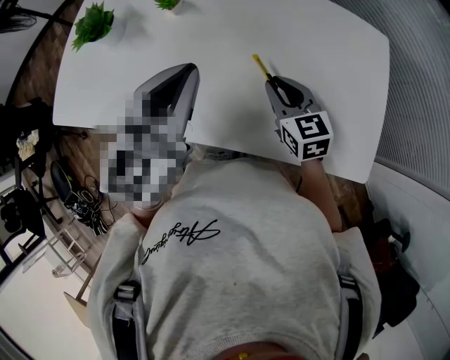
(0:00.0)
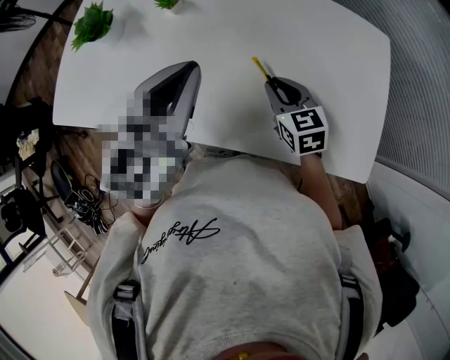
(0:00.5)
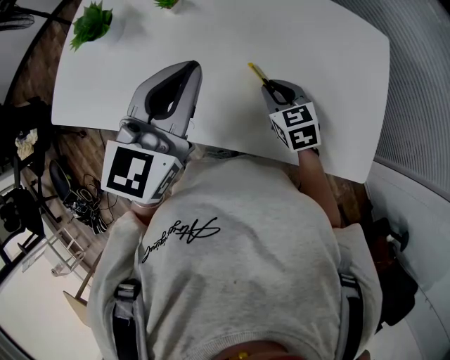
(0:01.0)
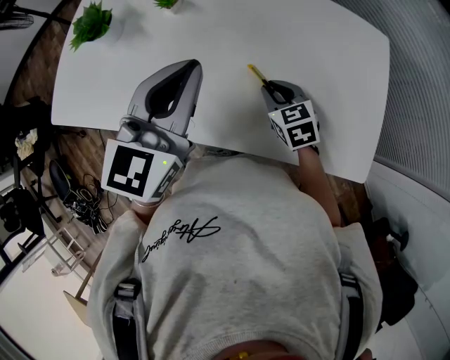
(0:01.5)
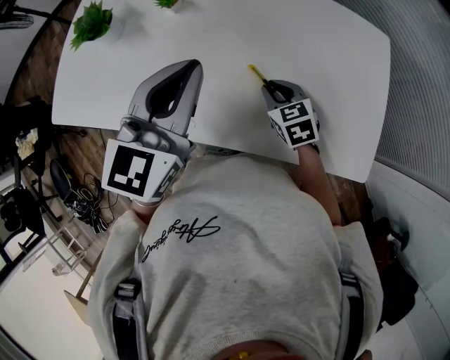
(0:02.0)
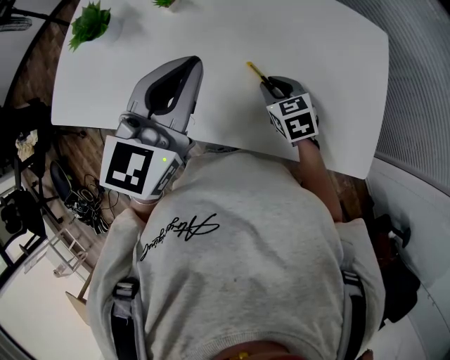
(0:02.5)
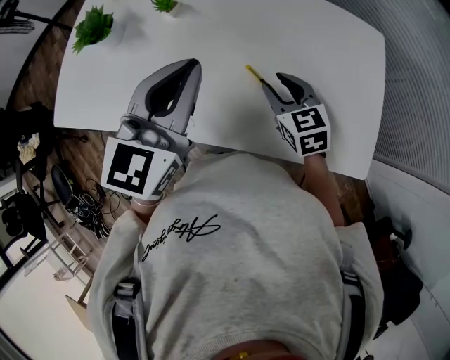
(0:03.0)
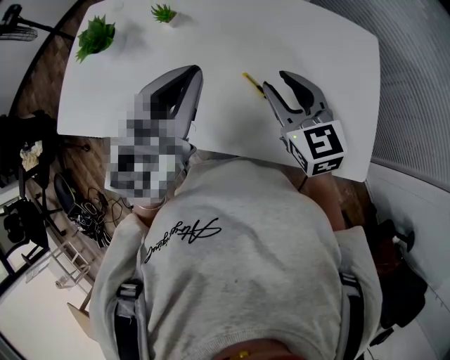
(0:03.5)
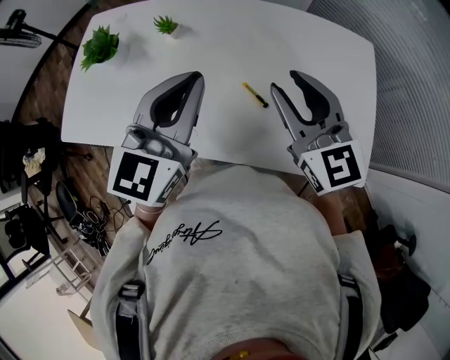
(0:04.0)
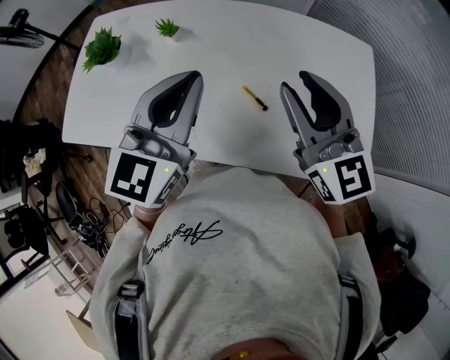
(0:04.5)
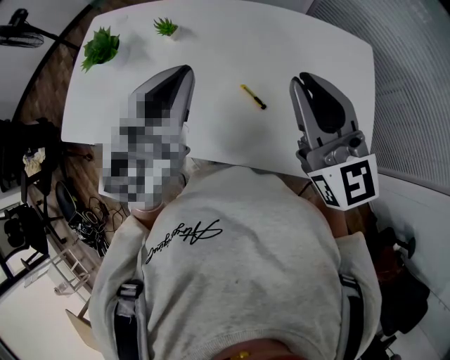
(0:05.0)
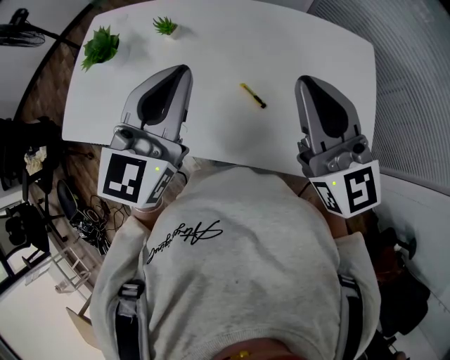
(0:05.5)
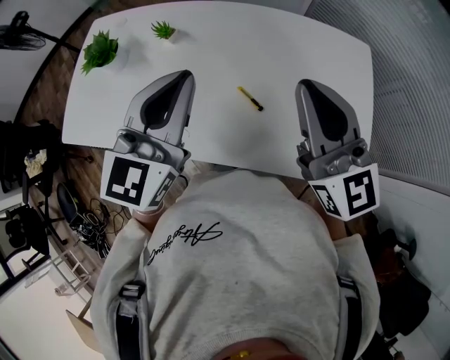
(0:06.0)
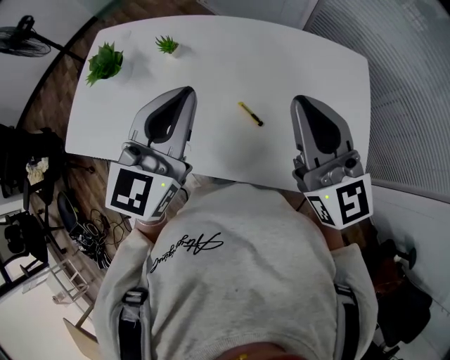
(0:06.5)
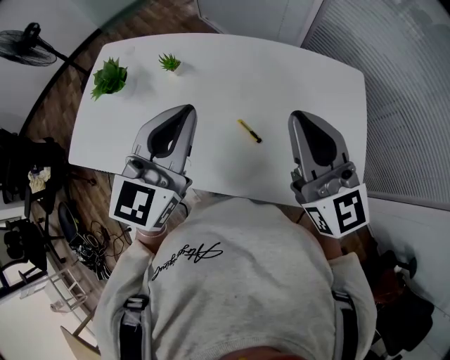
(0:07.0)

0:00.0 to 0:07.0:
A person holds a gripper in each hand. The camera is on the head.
0:00.0 to 0:02.0: The right gripper is displaced downward by approximately 5 cm.
0:02.0 to 0:03.5: The right gripper goes approximately 15 cm upward, changes its angle by roughly 30 degrees, and opens.
0:03.5 to 0:05.0: The right gripper heads upward, covering some 15 cm, rotates some 20 degrees, and closes its fingers.
0:05.0 to 0:07.0: The grippers move only a little.

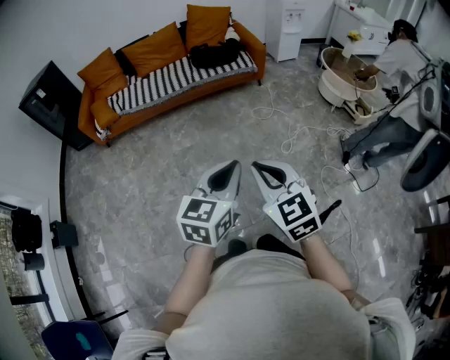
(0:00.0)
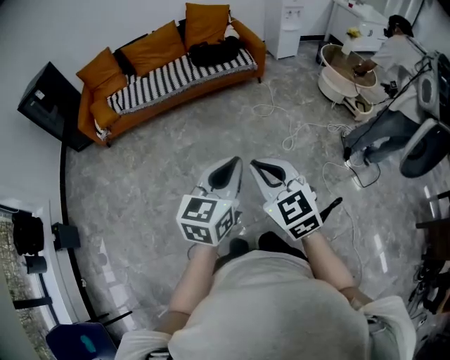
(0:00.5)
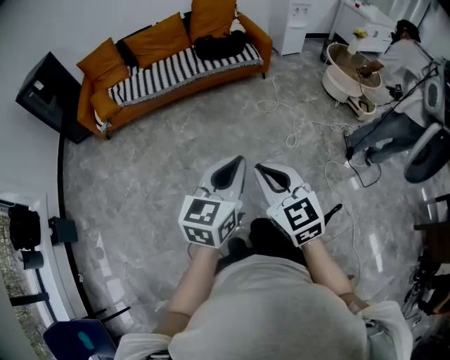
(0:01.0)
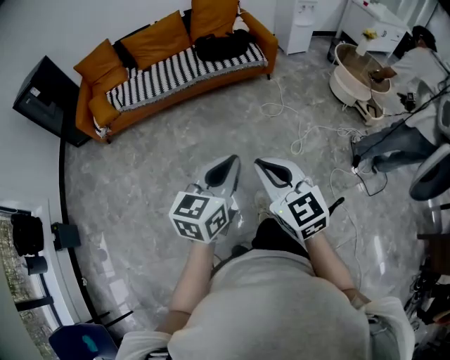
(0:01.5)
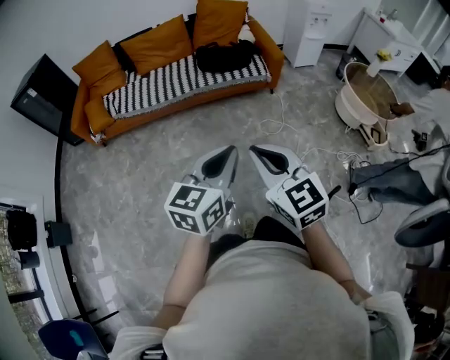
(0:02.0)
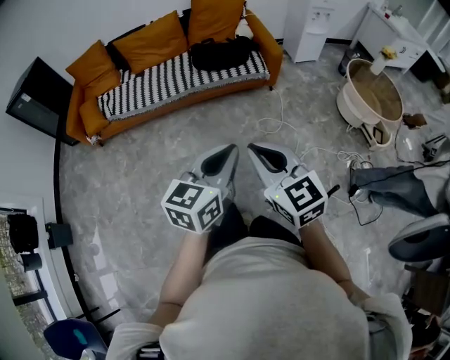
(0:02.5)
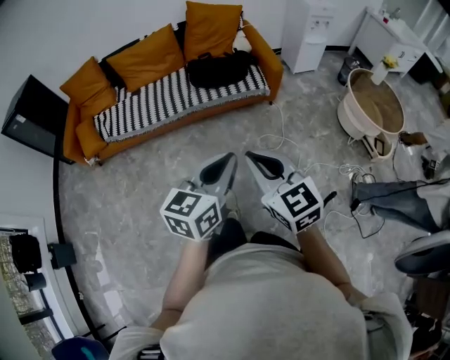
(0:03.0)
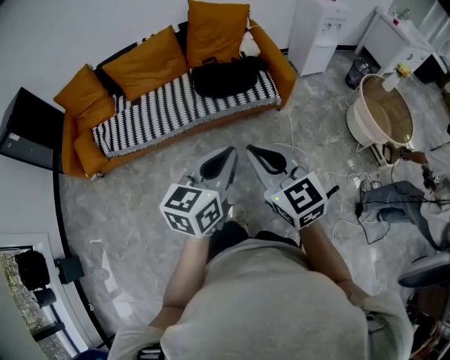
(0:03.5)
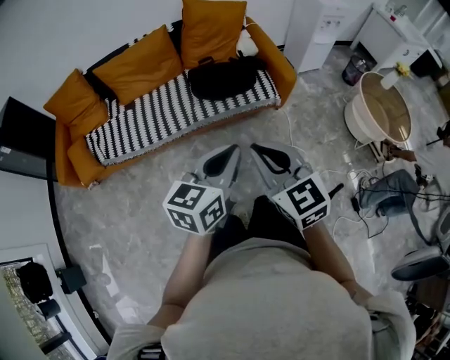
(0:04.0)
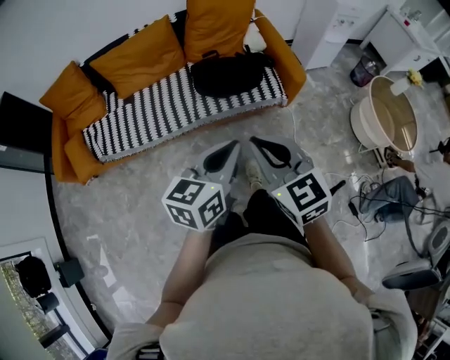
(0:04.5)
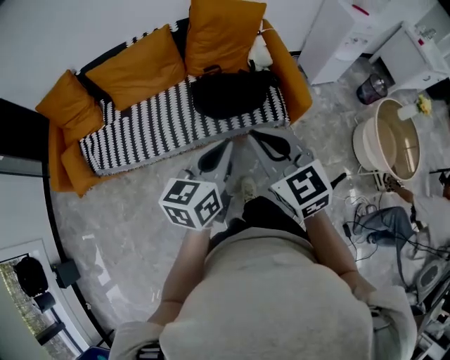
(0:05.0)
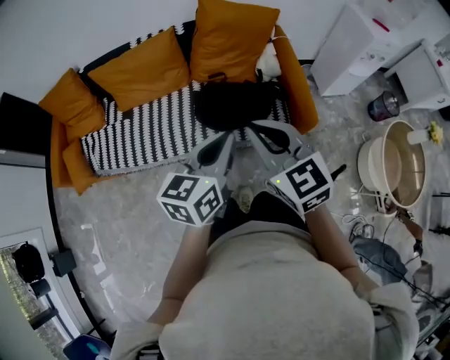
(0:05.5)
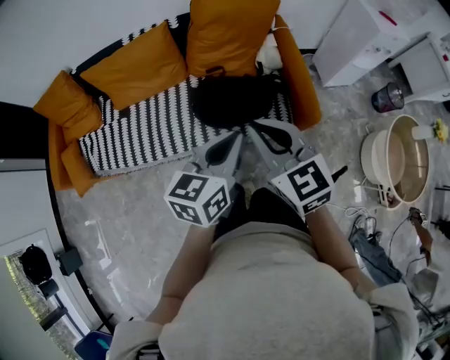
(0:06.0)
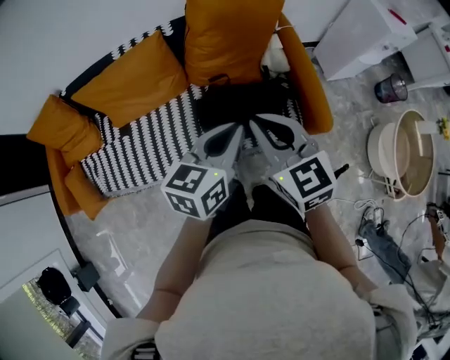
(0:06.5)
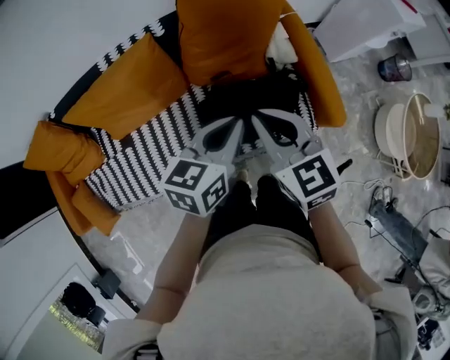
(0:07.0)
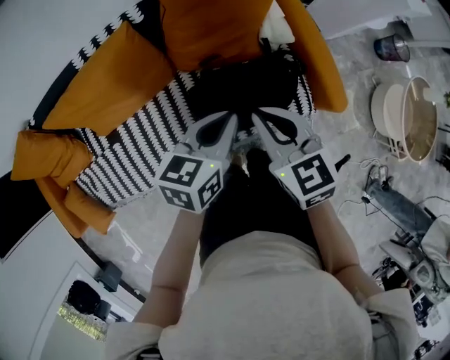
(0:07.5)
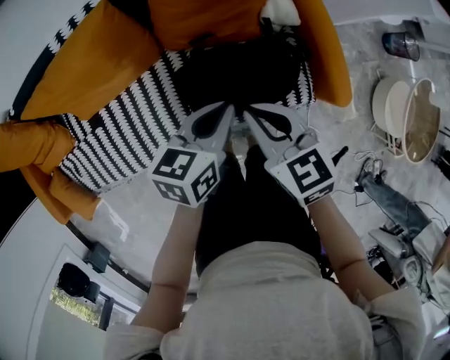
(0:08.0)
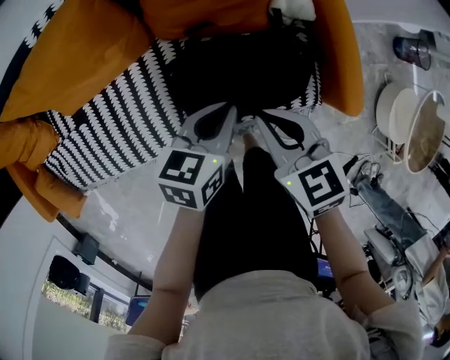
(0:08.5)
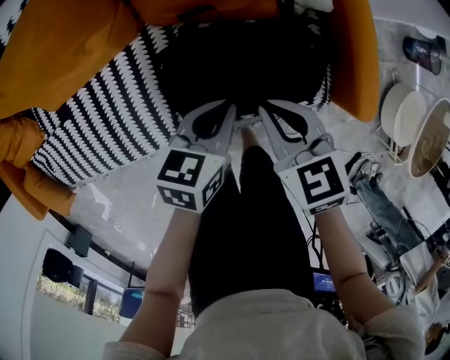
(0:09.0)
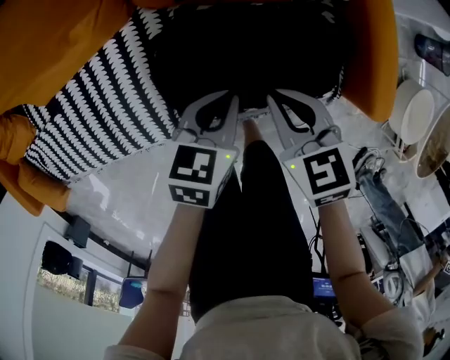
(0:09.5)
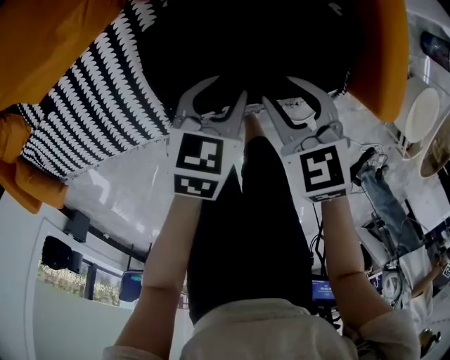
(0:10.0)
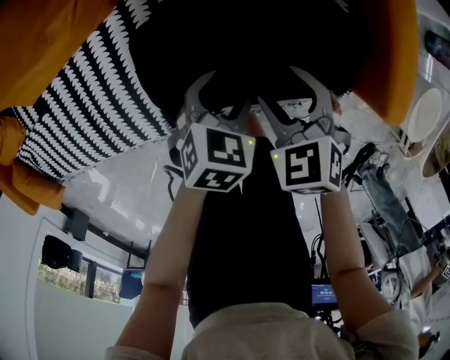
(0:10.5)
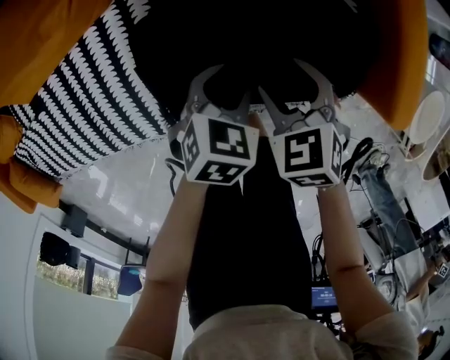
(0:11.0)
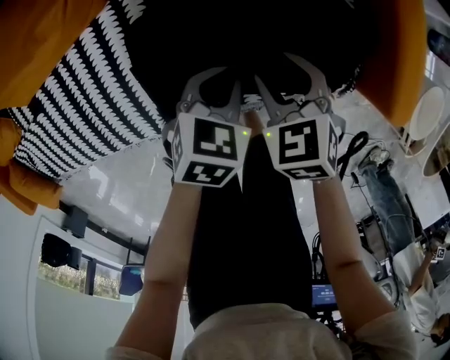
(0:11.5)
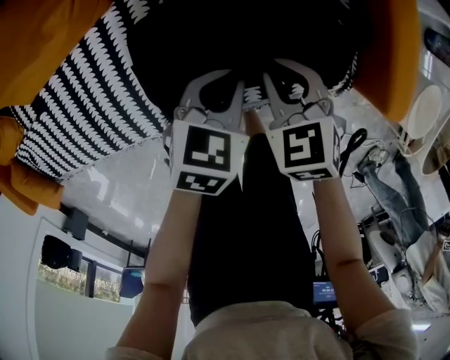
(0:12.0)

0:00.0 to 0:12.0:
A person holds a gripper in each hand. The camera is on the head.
0:00.0 to 0:02.0: The grippers both shift forward by roughly 25 cm.
0:02.0 to 0:04.0: The two grippers go some 35 cm forward.
0:04.0 to 0:06.0: The two grippers go approximately 35 cm forward.
0:06.0 to 0:08.0: The grippers both shift forward, downward and to the left by about 30 cm. The right gripper turns by roughly 20 degrees. The left gripper changes its angle by about 20 degrees.
0:08.0 to 0:10.0: The two grippers go about 25 cm downward. The left gripper opens its fingers. The right gripper opens.
0:10.0 to 0:12.0: The right gripper ends up about 5 cm from where it was, and closes. Meanwhile the left gripper closes up.

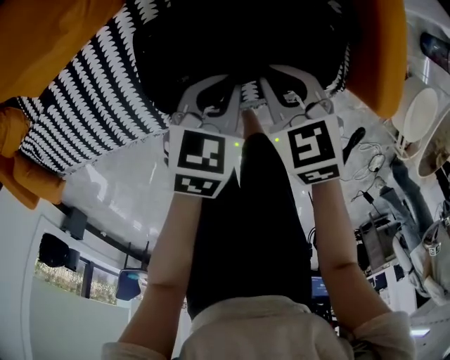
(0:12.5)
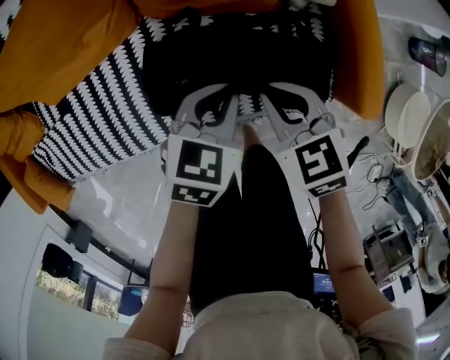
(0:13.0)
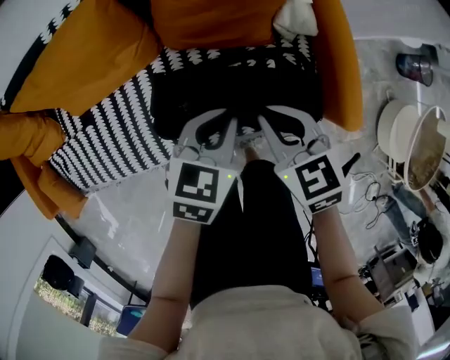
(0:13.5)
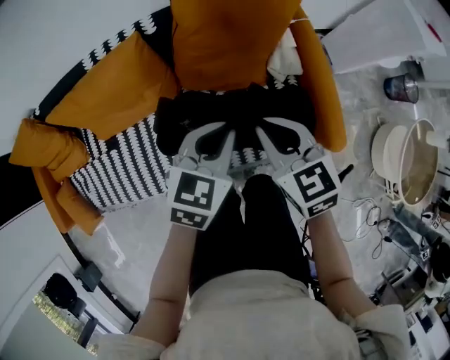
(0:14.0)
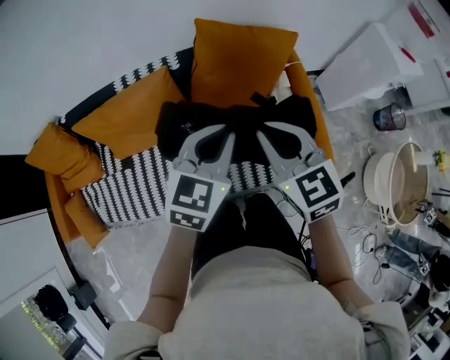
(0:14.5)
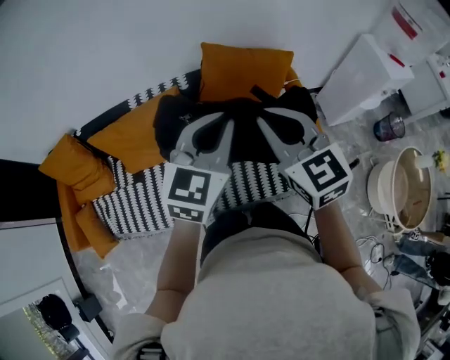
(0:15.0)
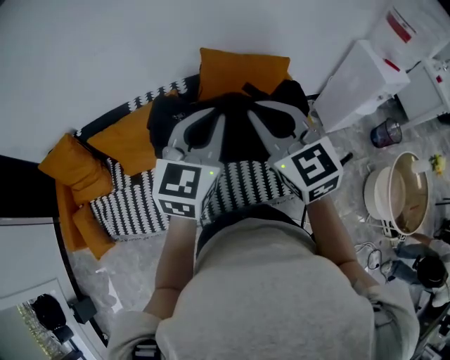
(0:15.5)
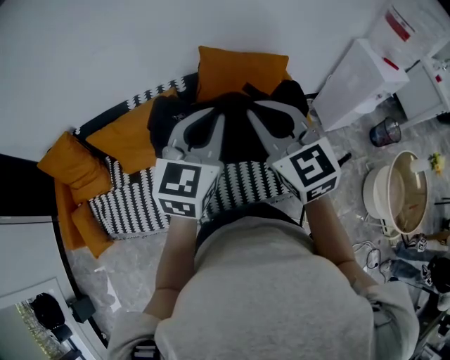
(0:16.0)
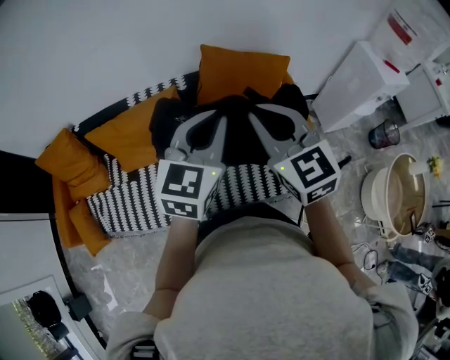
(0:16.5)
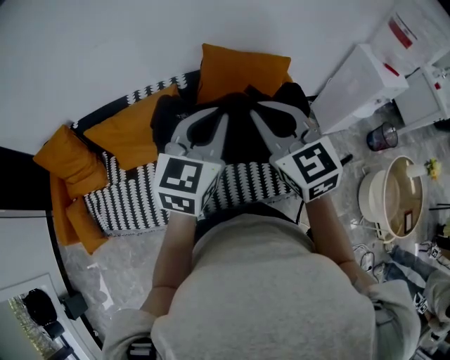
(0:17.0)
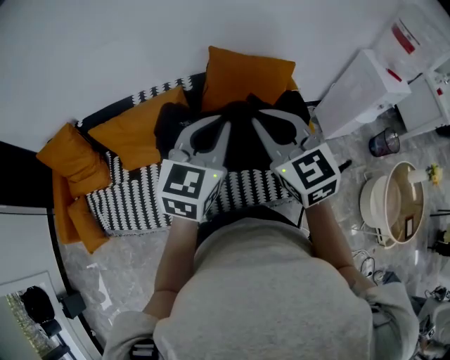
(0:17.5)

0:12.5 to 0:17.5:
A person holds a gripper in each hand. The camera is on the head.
0:12.5 to 0:15.0: The grippers both shift upward by approximately 50 cm. The left gripper tilts its fingers about 40 degrees upward; the right gripper angles its fingers upward, by approximately 40 degrees.
0:15.0 to 0:17.5: There are only small adjustments of the grippers.

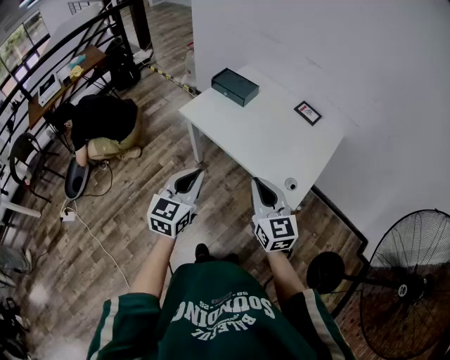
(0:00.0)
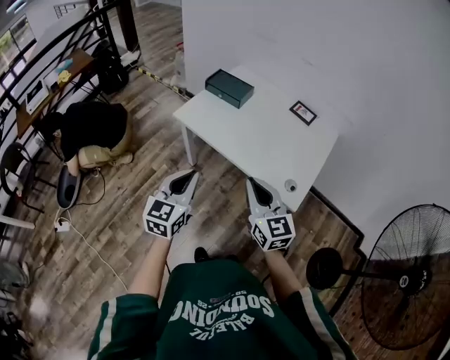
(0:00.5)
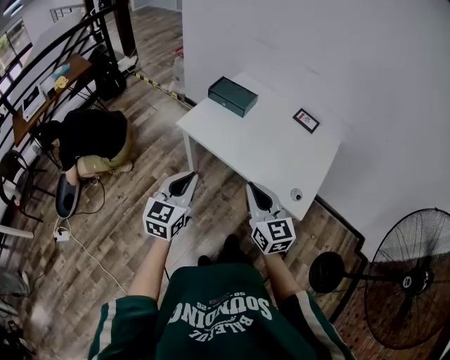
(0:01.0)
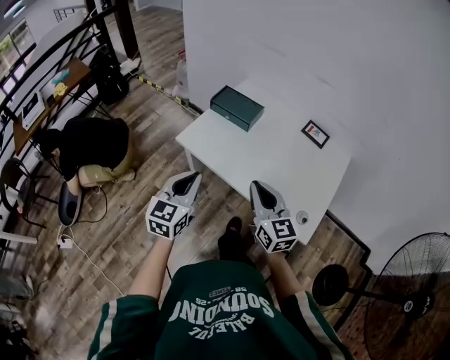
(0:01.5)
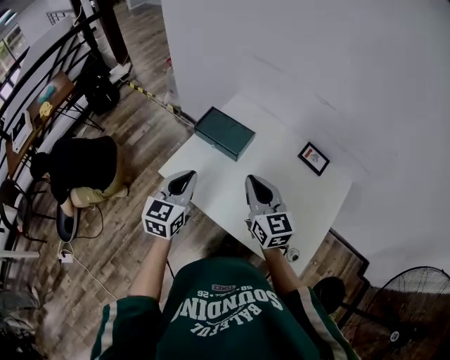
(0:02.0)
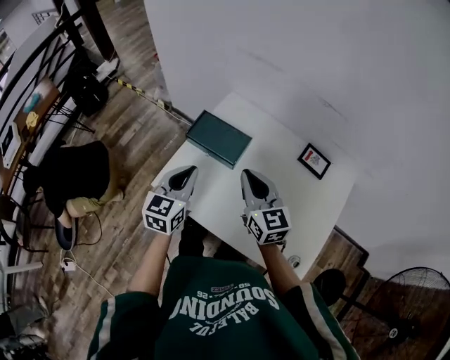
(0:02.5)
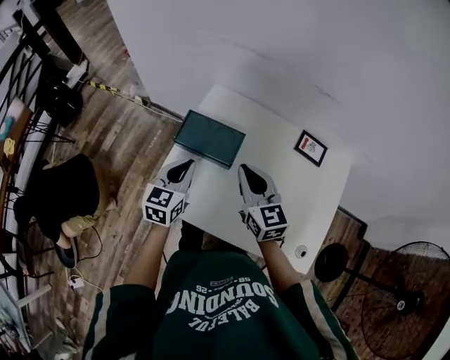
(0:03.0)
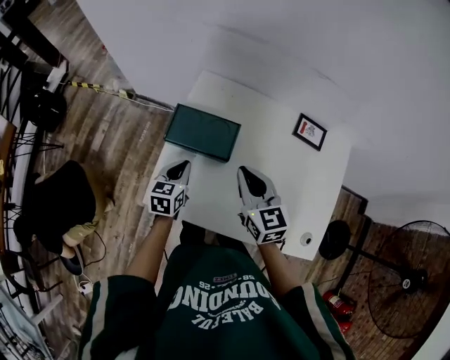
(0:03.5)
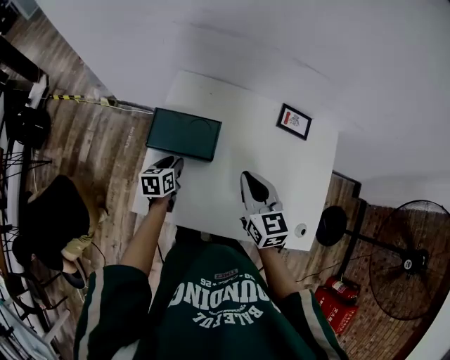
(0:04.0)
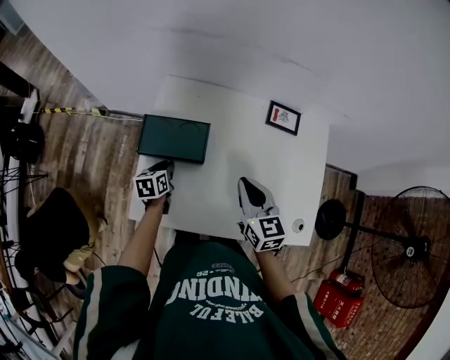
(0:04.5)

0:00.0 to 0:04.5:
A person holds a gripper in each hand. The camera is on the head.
0:00.0 to 0:02.0: The grippers both shift forward by approximately 35 cm.
0:02.0 to 0:04.5: The left gripper is displaced downward by about 25 cm, and points its fingers about 30 degrees further downward; the right gripper moves roughly 15 cm, and swivels approximately 30 degrees.
